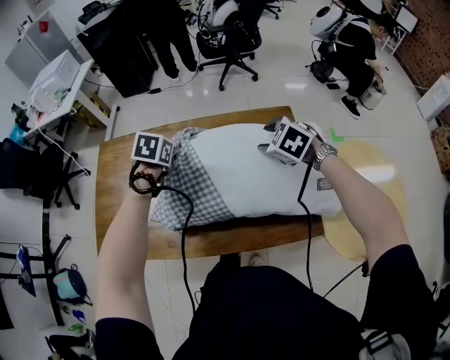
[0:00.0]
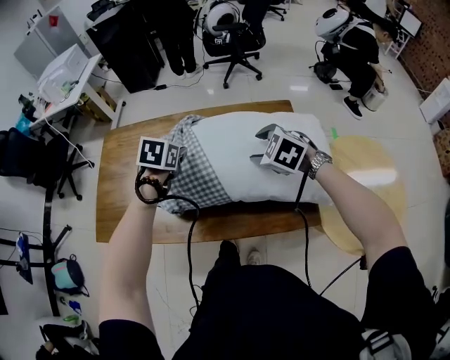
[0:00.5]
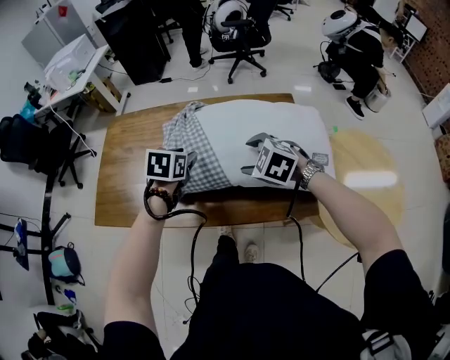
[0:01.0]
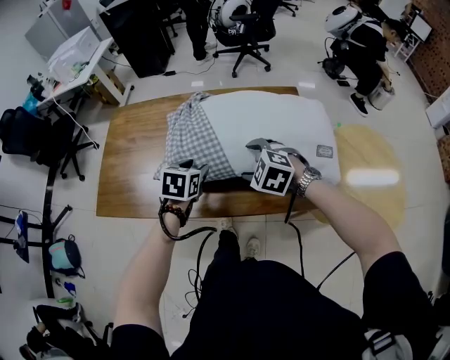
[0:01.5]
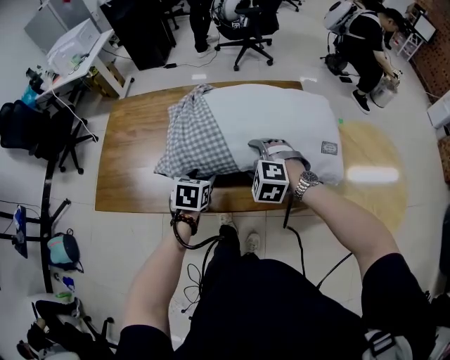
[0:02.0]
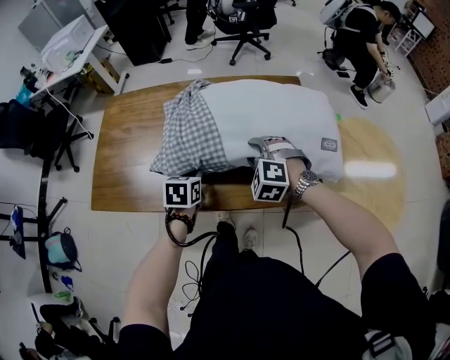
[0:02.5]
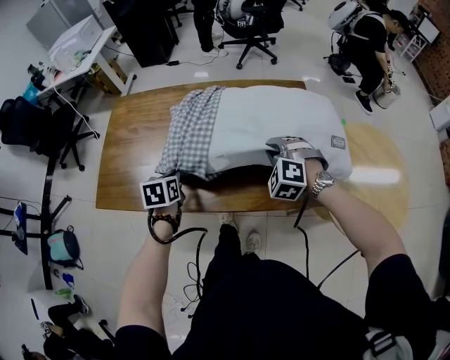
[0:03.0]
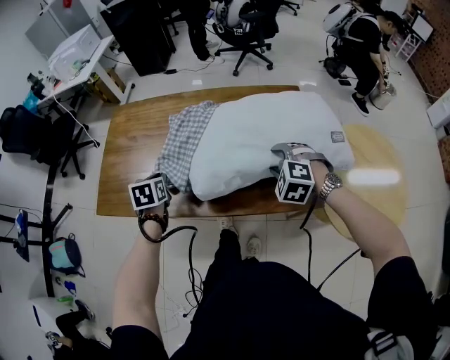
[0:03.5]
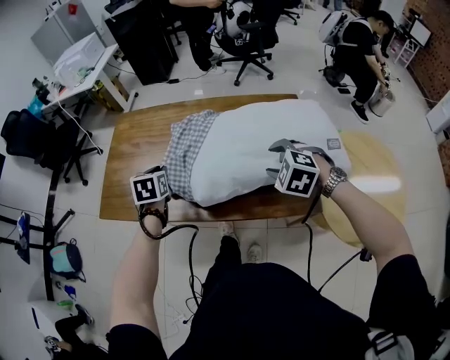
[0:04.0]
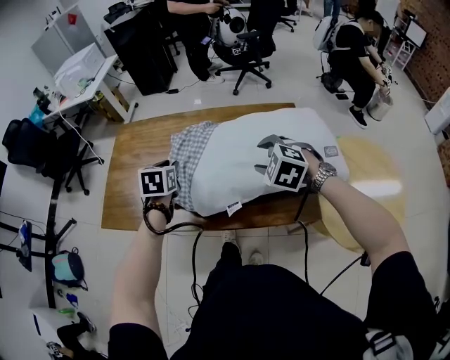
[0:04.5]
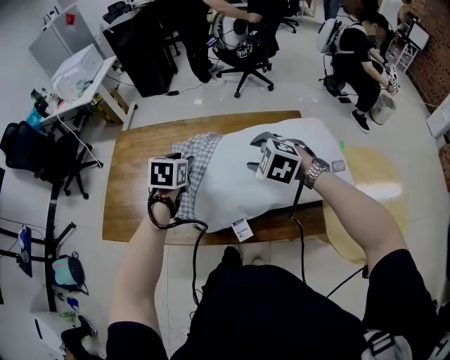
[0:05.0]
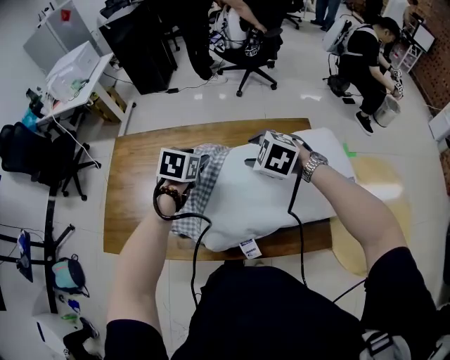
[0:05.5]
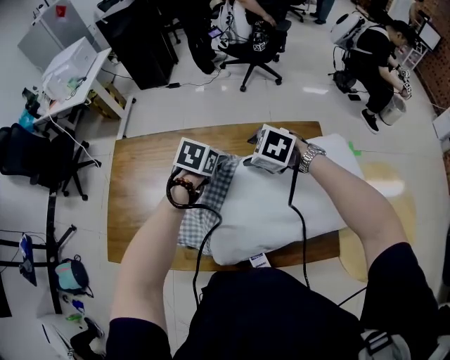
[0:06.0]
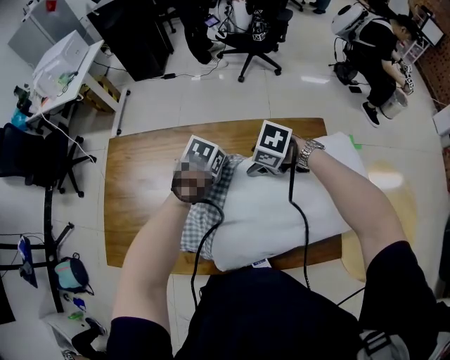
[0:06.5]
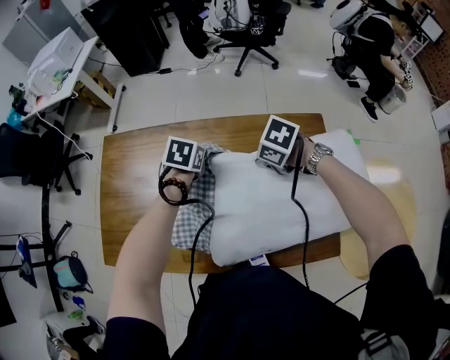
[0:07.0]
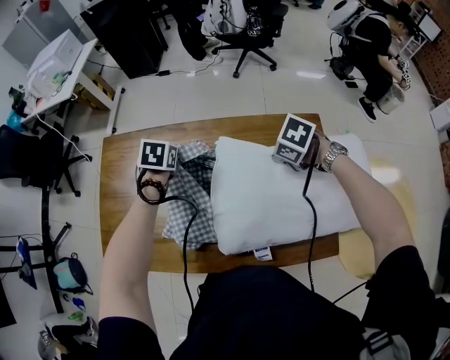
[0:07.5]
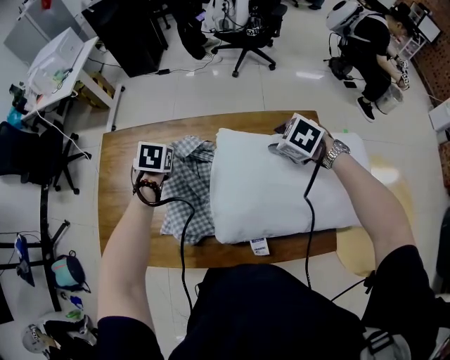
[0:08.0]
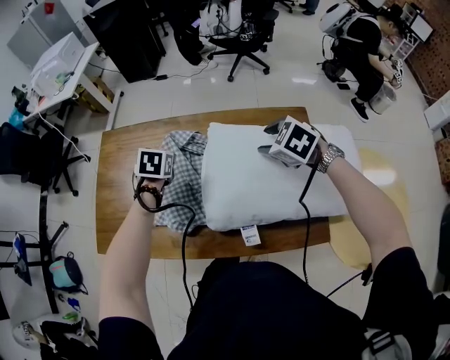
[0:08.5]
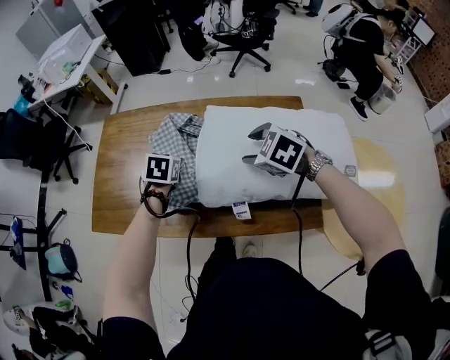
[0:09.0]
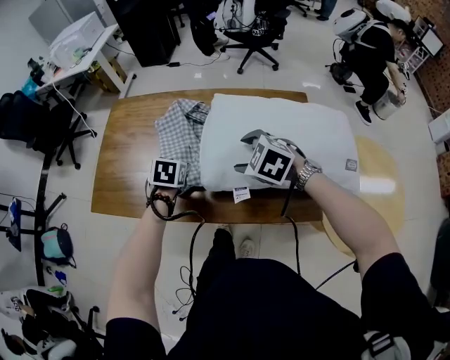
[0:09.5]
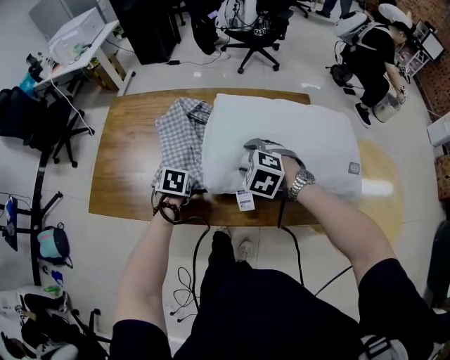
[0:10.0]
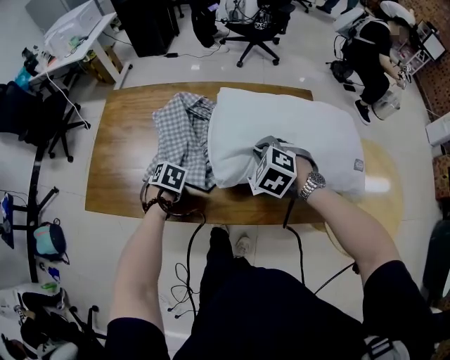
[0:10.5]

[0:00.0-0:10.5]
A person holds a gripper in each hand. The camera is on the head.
0:00.0 to 0:02.0: The right gripper shifts approximately 20 cm backward, downward and to the left, and swivels approximately 30 degrees; the left gripper shifts roughly 25 cm backward and downward, and opens.
0:02.0 to 0:04.0: The right gripper travels upward, to the right and backward by some 10 cm, and closes and opens again. Meanwhile the left gripper goes approximately 15 cm to the left and upward, and closes its fingers.
0:04.0 to 0:06.5: The right gripper shifts by some 35 cm, and changes its angle by about 40 degrees. The left gripper ends up some 30 cm from where it was, swivels approximately 40 degrees, and opens, then closes once more.
0:06.5 to 0:08.5: The right gripper shifts by roughly 10 cm, and closes, then reopens. Meanwhile the left gripper shifts by some 15 cm, and changes its angle by roughly 20 degrees.
0:08.5 to 0:10.5: The left gripper shifts by some 25 cm, and closes, while the right gripper shifts by roughly 15 cm, swivels approximately 20 degrees, and closes its fingers.

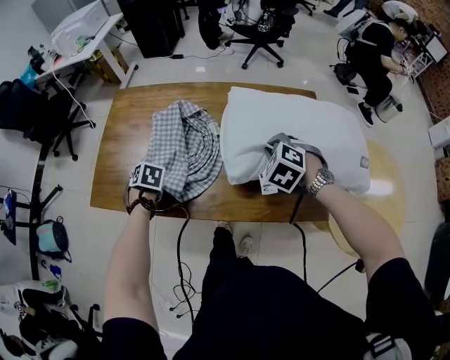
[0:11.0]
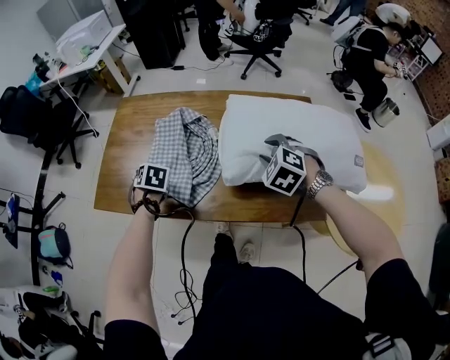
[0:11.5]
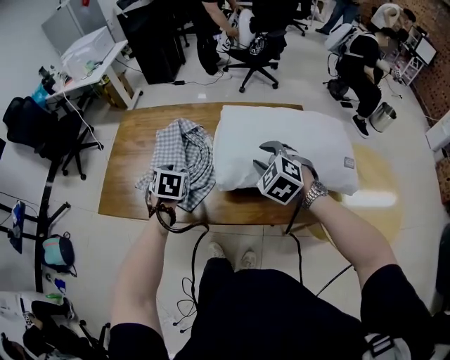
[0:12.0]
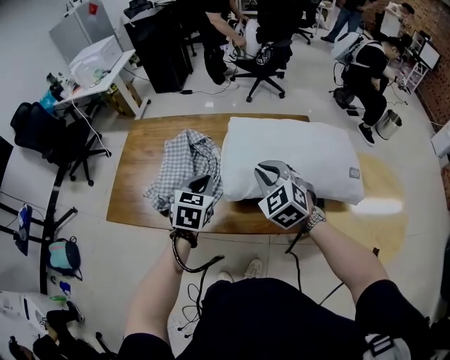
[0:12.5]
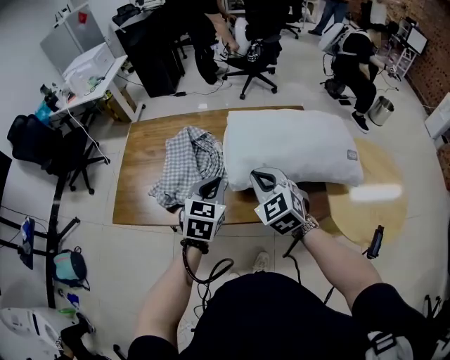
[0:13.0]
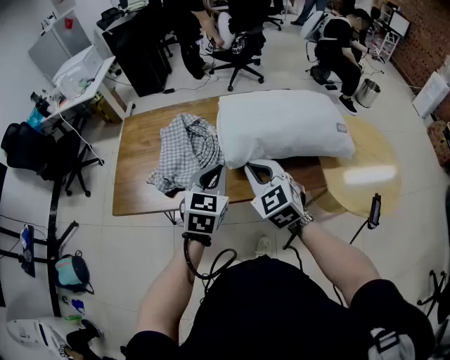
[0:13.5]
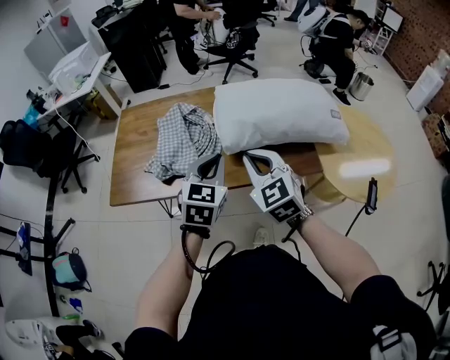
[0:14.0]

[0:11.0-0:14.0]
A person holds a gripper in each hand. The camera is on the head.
0:11.0 to 0:12.5: The right gripper goes about 20 cm backward and upward, and points its fingers roughly 30 degrees further upward; the left gripper is displaced to the right, upward and backward by roughly 35 cm, tilts its fingers about 50 degrees upward, and opens and closes again.
0:12.5 to 0:14.0: The left gripper moves backward and upward, approximately 20 cm, while the right gripper goes approximately 20 cm backward and to the left.

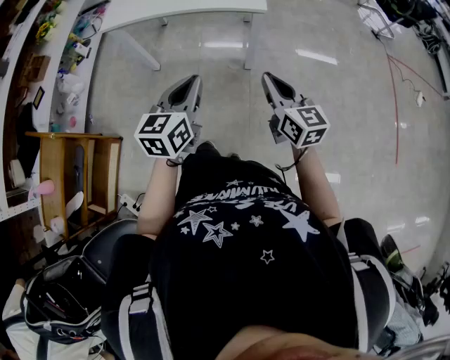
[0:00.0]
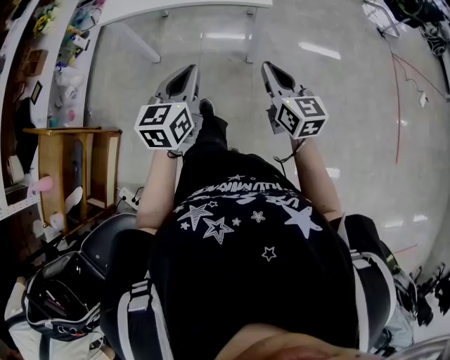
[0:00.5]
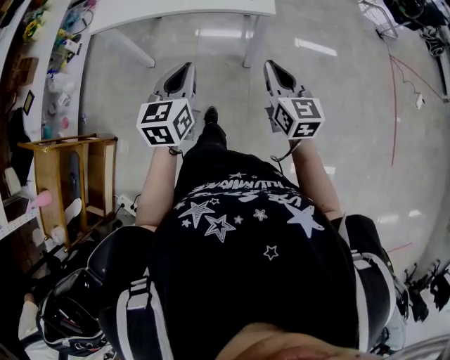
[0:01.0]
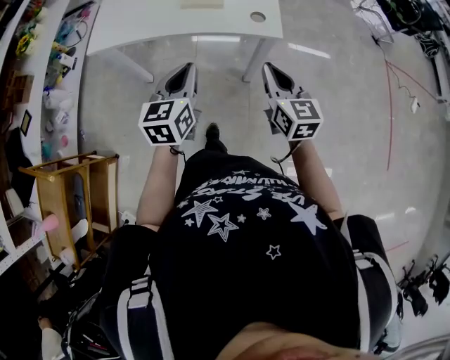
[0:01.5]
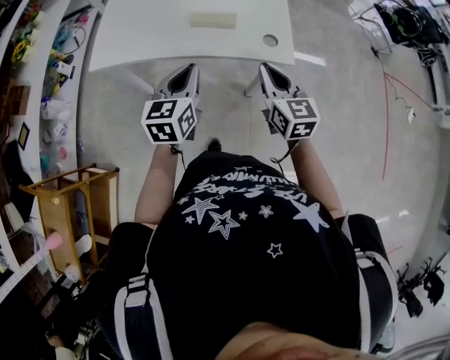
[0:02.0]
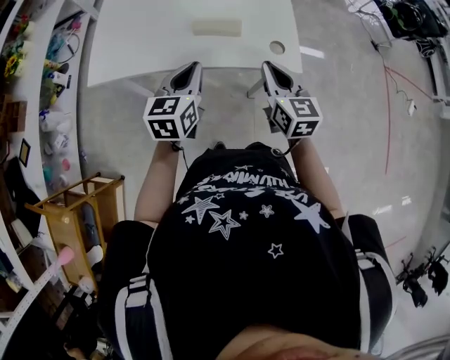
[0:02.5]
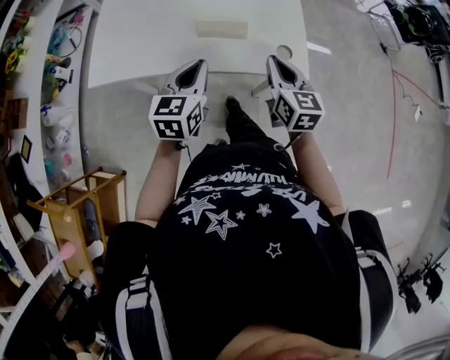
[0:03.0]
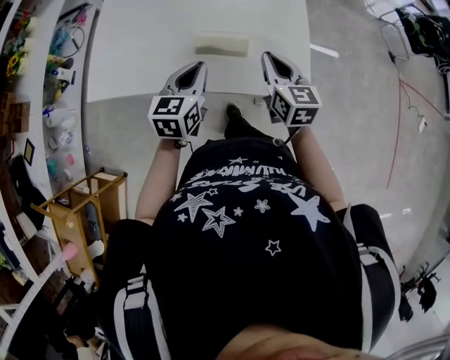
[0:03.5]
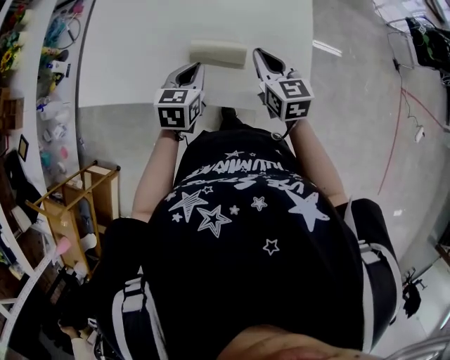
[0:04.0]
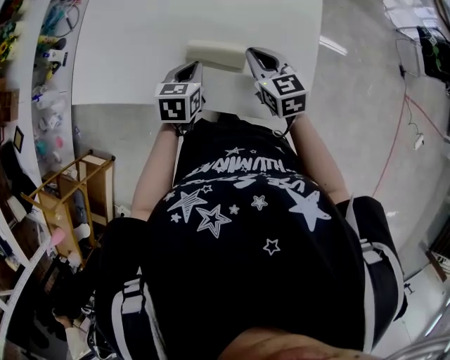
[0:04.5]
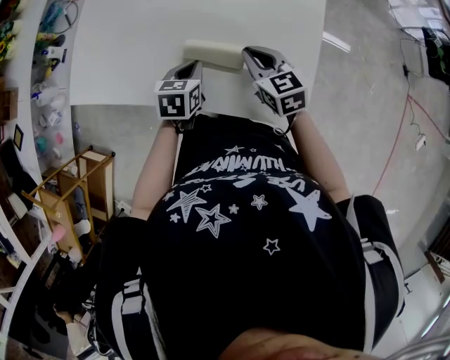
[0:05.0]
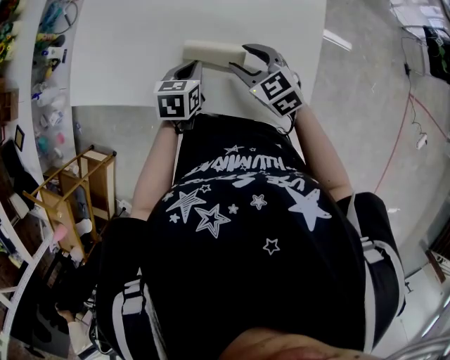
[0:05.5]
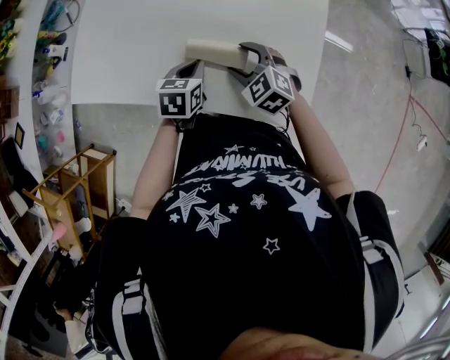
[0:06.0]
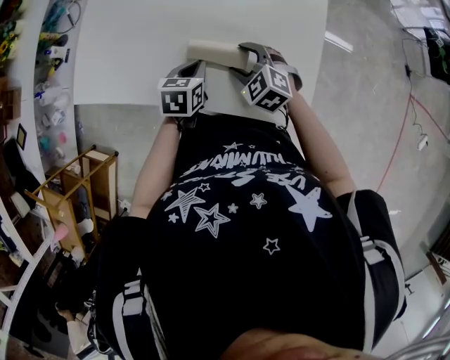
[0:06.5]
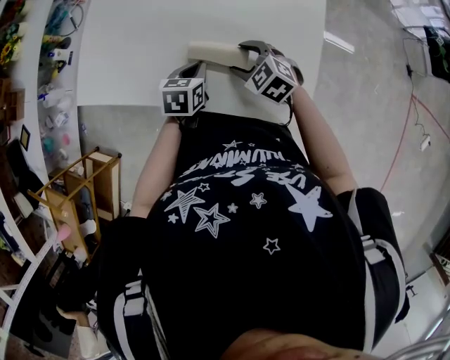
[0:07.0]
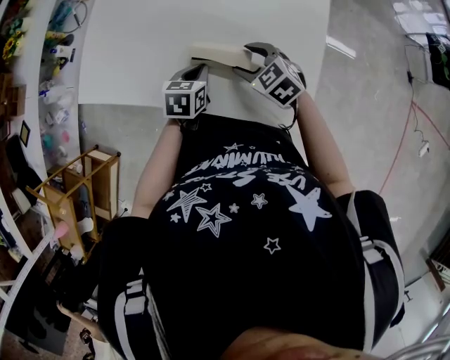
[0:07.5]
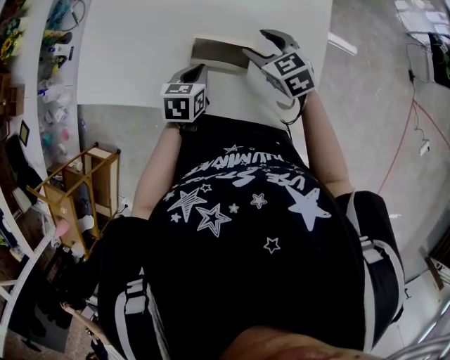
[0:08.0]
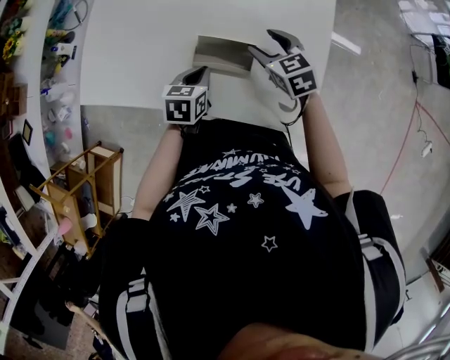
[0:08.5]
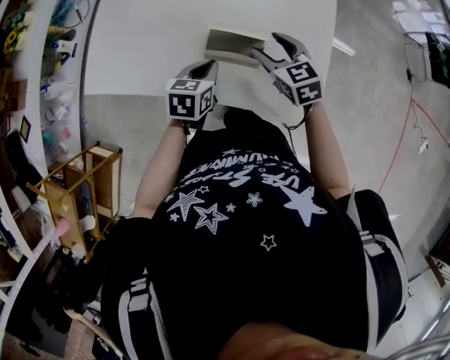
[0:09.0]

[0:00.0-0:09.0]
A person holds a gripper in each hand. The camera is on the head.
0:00.0 to 0:02.0: Both grippers move forward, about 35 cm.
0:02.0 to 0:04.5: The right gripper goes some 30 cm forward, and changes its angle by about 20 degrees; the left gripper heads forward and downward, covering about 30 cm, and swivels some 30 degrees.
0:04.5 to 0:07.0: The right gripper is displaced downward by roughly 5 cm, swivels approximately 40 degrees, and opens up.
0:07.0 to 0:09.0: The right gripper is displaced upward by some 5 cm, and changes its angle by approximately 30 degrees.

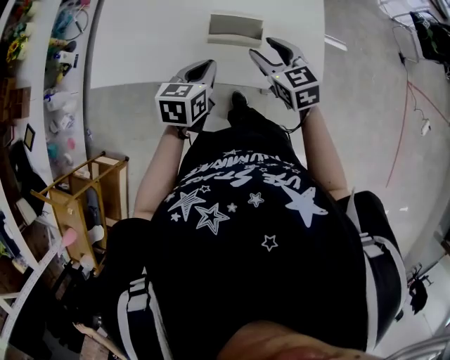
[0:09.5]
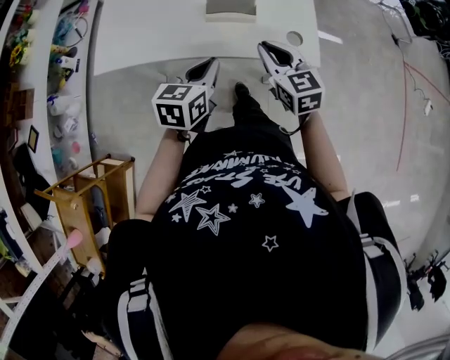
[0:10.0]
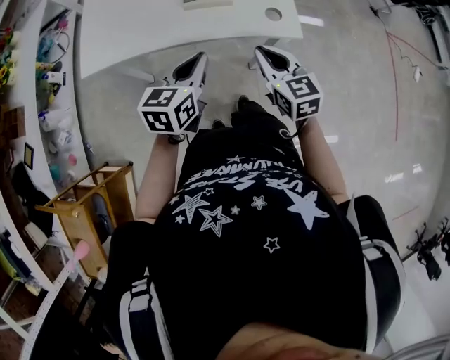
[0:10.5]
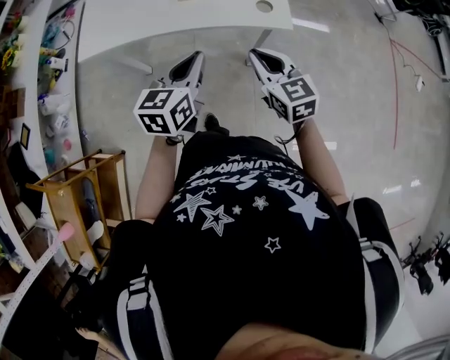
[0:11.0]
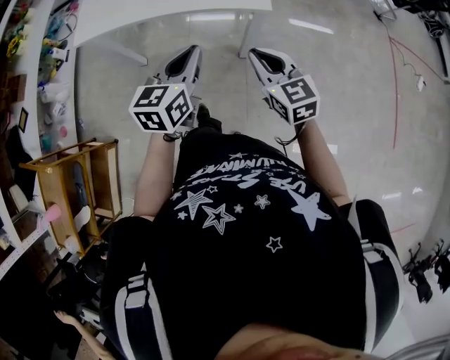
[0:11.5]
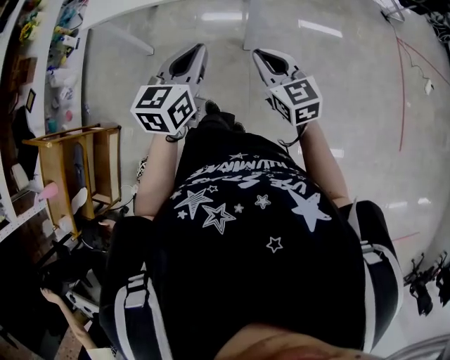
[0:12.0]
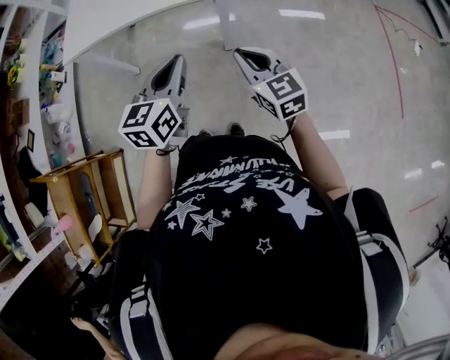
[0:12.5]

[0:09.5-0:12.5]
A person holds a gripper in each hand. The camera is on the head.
0:09.5 to 0:11.0: The grippers both shift backward by roughly 25 cm. The right gripper closes up.
0:11.0 to 0:12.5: Both grippers move backward and to the right, approximately 20 cm.
